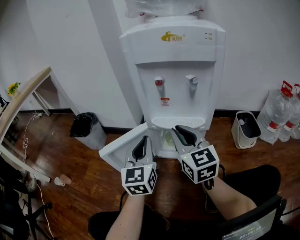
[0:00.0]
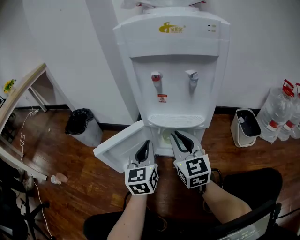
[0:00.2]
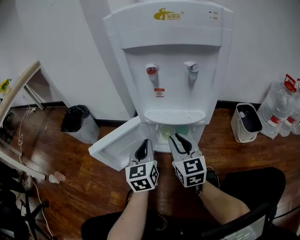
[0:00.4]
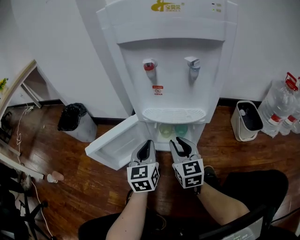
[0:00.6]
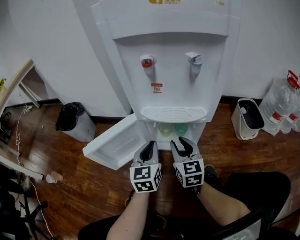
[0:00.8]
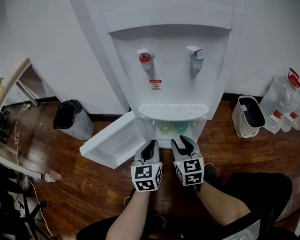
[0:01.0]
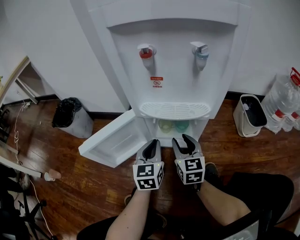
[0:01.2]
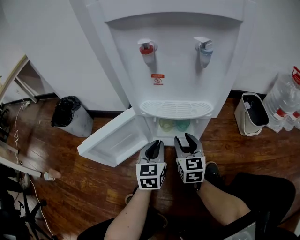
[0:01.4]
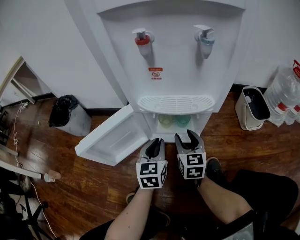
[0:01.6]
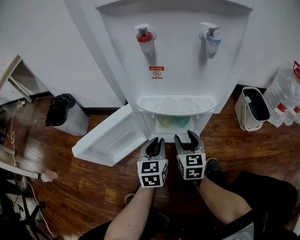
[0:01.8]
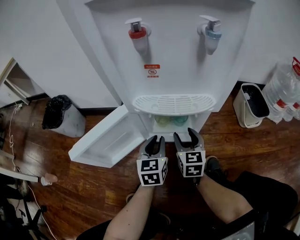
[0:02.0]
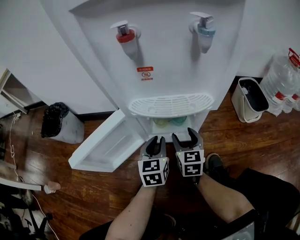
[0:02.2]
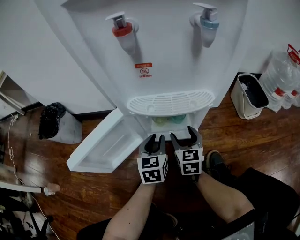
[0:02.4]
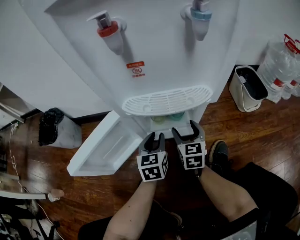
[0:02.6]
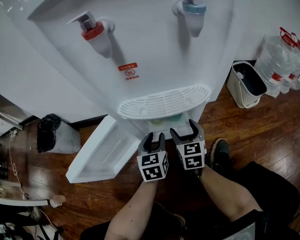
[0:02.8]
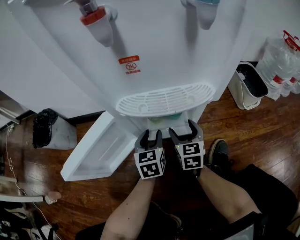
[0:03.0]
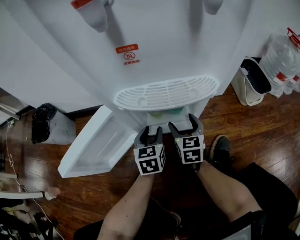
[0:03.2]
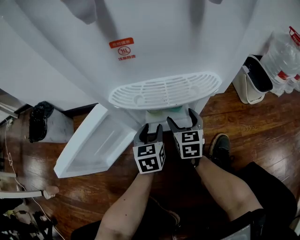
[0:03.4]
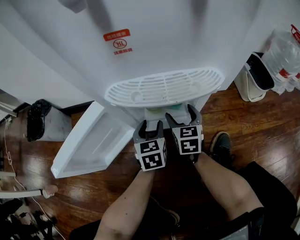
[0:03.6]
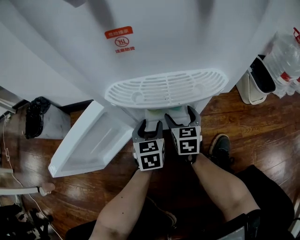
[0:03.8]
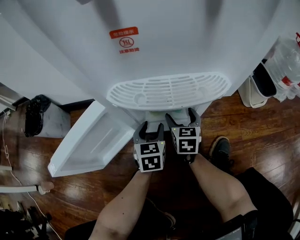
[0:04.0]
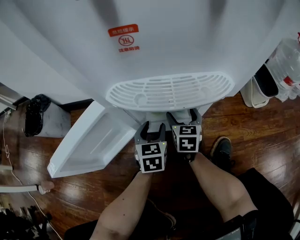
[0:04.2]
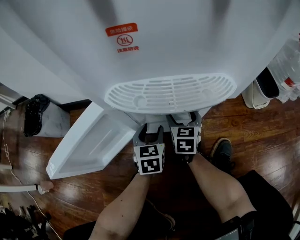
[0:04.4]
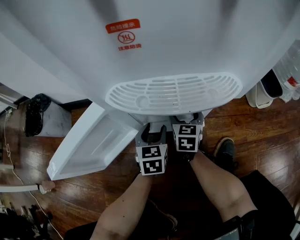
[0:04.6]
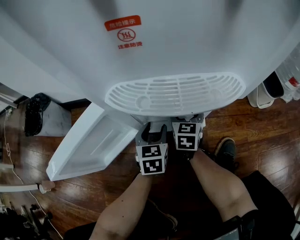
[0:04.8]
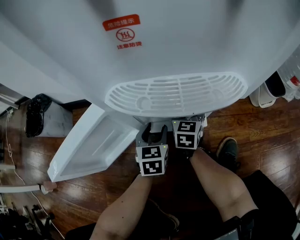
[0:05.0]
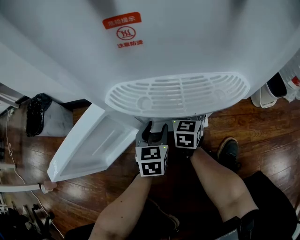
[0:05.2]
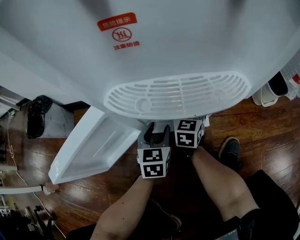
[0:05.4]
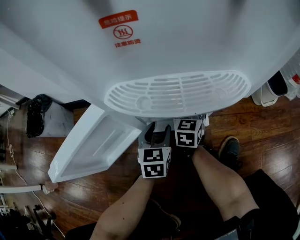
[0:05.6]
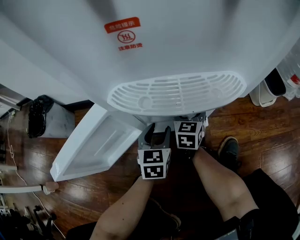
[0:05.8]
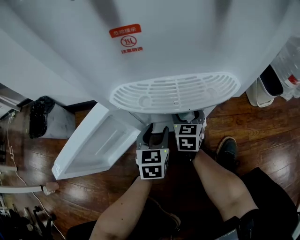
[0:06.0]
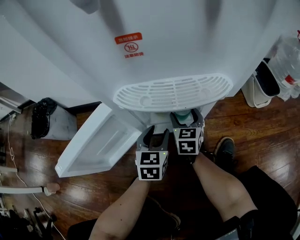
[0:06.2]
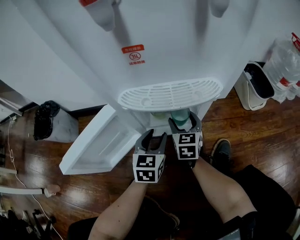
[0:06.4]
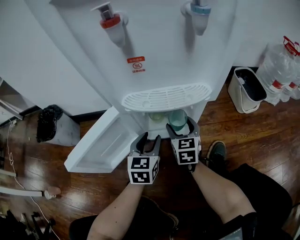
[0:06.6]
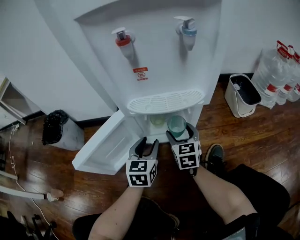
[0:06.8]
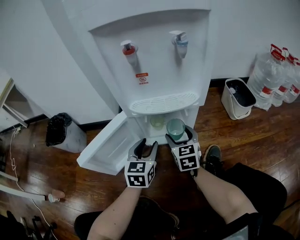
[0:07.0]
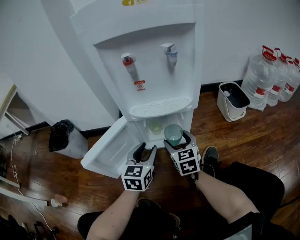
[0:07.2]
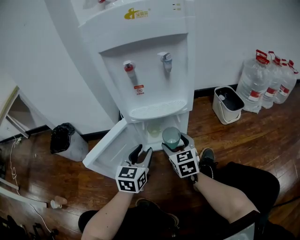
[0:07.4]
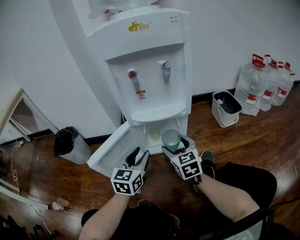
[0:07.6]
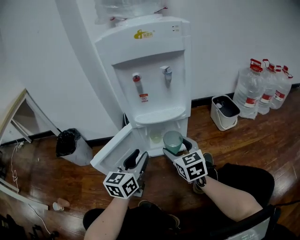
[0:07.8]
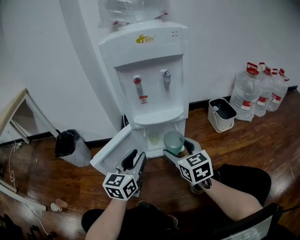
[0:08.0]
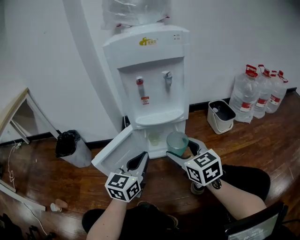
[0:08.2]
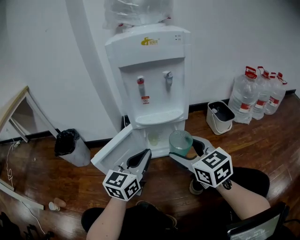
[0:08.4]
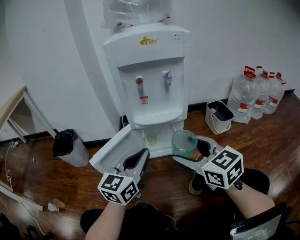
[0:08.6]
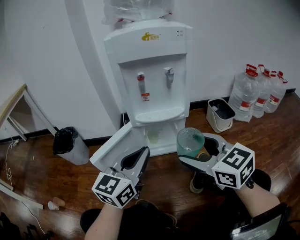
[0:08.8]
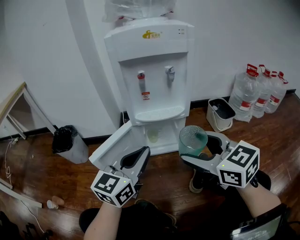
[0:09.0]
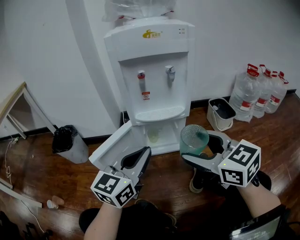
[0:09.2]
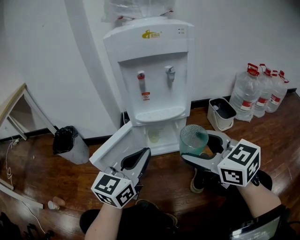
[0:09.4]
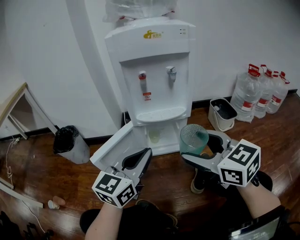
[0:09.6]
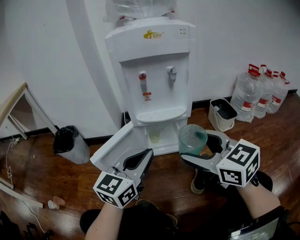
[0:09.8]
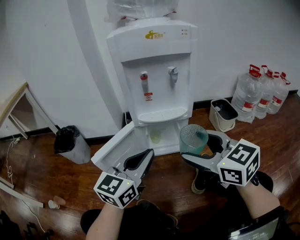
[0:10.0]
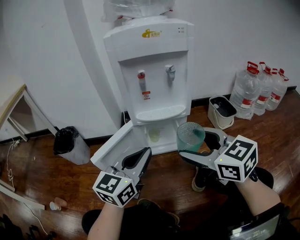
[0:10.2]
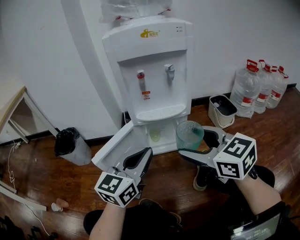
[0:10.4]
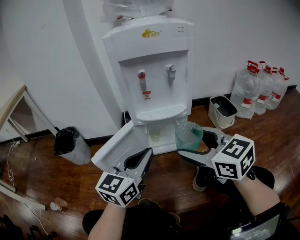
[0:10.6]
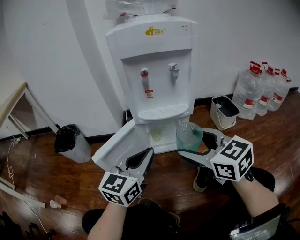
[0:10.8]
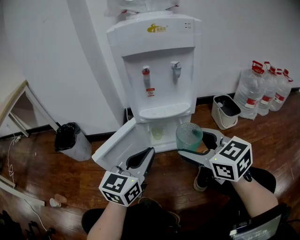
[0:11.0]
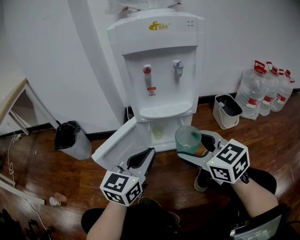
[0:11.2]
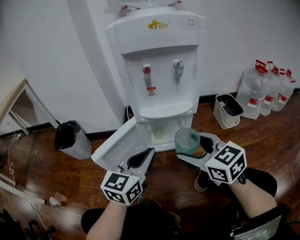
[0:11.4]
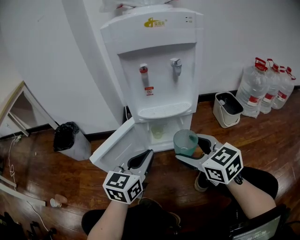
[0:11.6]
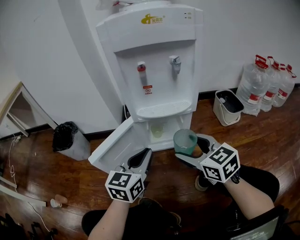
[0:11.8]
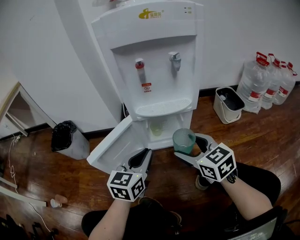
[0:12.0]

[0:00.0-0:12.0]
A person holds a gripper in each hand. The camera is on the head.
0:00.0 to 0:01.6: The grippers both shift downward by approximately 25 cm. The left gripper changes its angle by roughly 20 degrees, while the right gripper swivels roughly 20 degrees, and opens up.
0:01.6 to 0:03.0: The right gripper shifts about 10 cm downward, and opens up. Meanwhile the left gripper is displaced downward and forward by approximately 10 cm, and opens.
0:03.0 to 0:04.4: The right gripper goes about 10 cm forward and downward; the left gripper goes about 5 cm downward.
0:04.4 to 0:06.0: The grippers stay close to where they were, moving slightly.
0:06.0 to 0:07.6: Both grippers move upward and backward, some 30 cm.
0:07.6 to 0:09.0: Both grippers move upward and backward, approximately 20 cm. The right gripper changes its angle by roughly 20 degrees; the left gripper closes, then opens again.
0:09.0 to 0:10.4: There are only small adjustments of the grippers.
0:10.4 to 0:12.0: The two grippers go roughly 15 cm downward and forward.

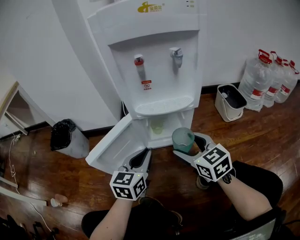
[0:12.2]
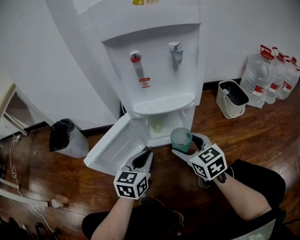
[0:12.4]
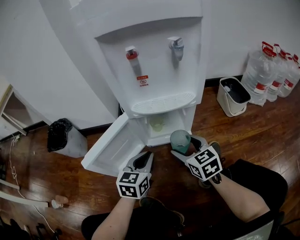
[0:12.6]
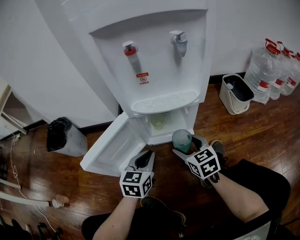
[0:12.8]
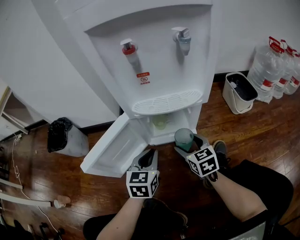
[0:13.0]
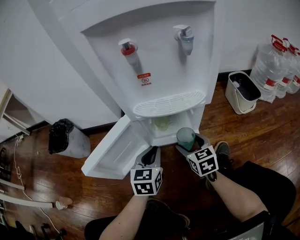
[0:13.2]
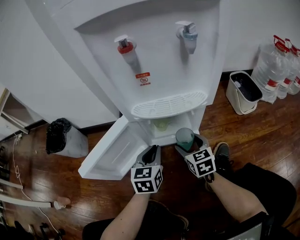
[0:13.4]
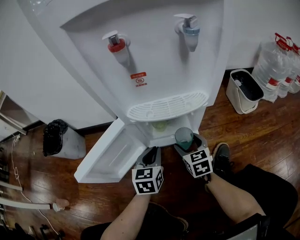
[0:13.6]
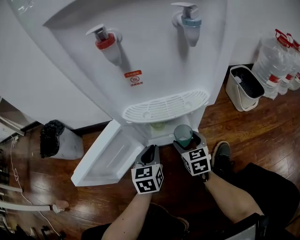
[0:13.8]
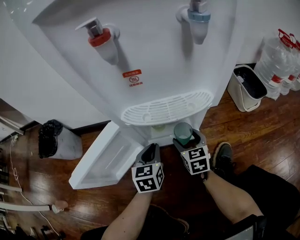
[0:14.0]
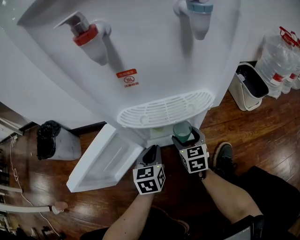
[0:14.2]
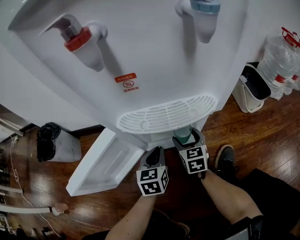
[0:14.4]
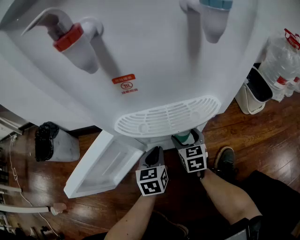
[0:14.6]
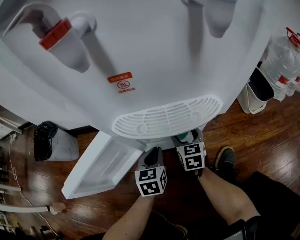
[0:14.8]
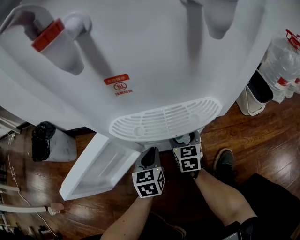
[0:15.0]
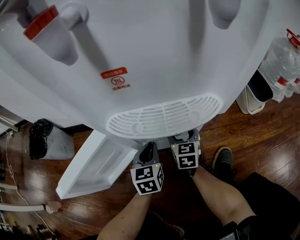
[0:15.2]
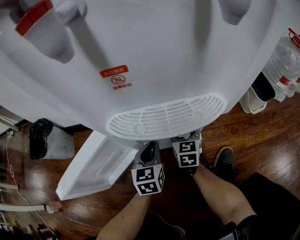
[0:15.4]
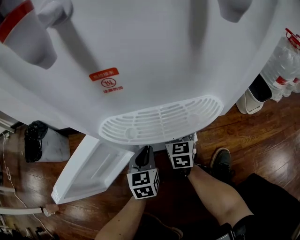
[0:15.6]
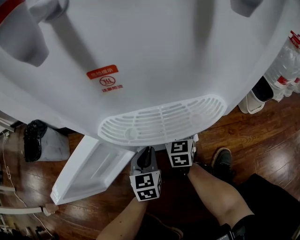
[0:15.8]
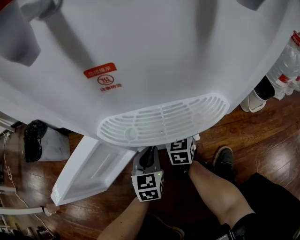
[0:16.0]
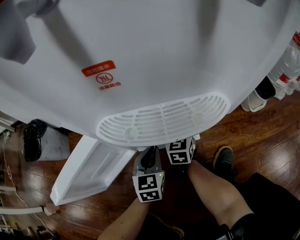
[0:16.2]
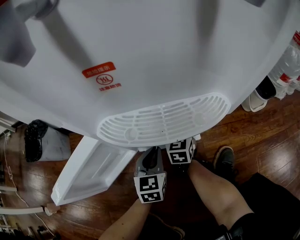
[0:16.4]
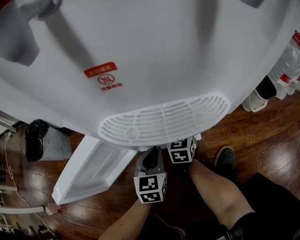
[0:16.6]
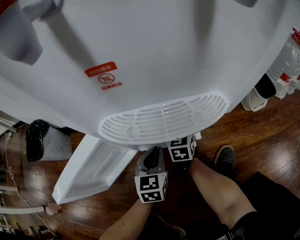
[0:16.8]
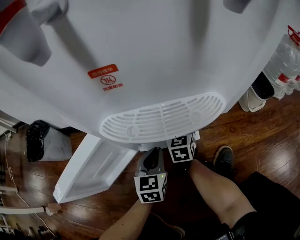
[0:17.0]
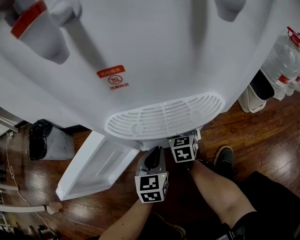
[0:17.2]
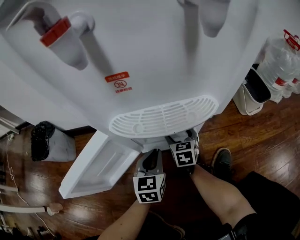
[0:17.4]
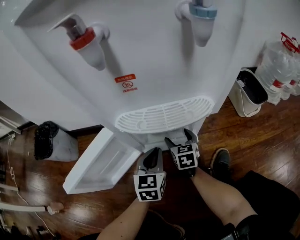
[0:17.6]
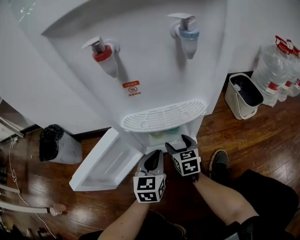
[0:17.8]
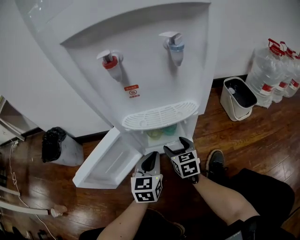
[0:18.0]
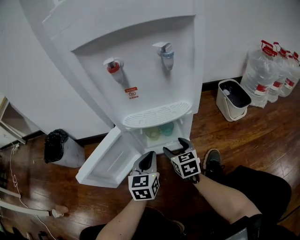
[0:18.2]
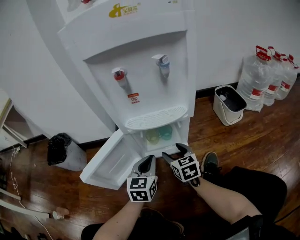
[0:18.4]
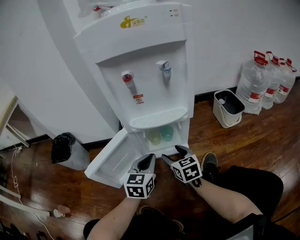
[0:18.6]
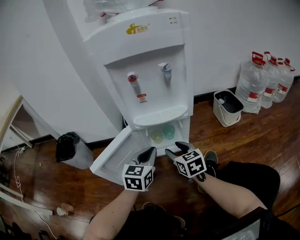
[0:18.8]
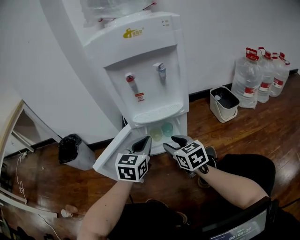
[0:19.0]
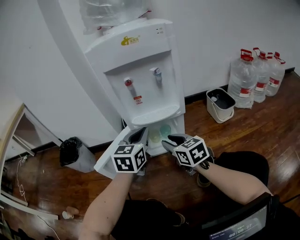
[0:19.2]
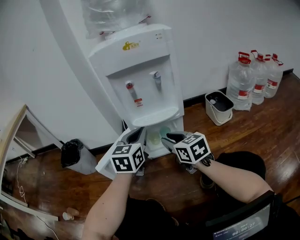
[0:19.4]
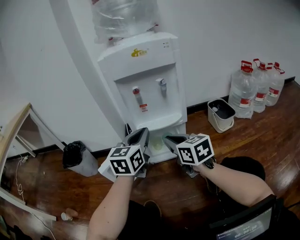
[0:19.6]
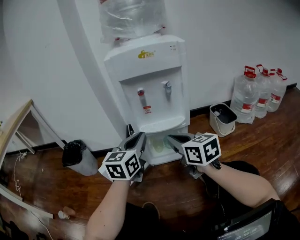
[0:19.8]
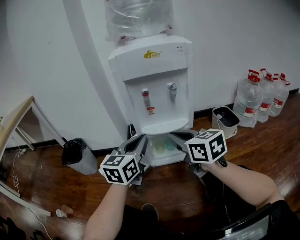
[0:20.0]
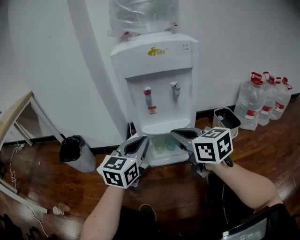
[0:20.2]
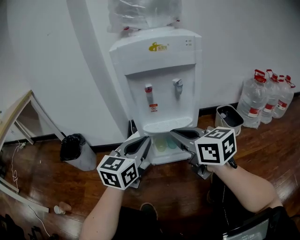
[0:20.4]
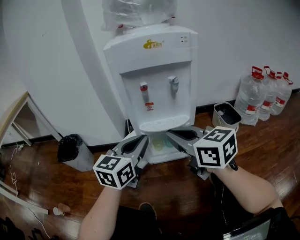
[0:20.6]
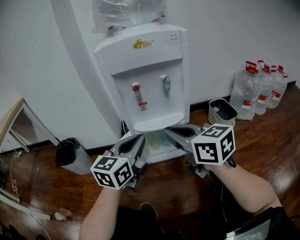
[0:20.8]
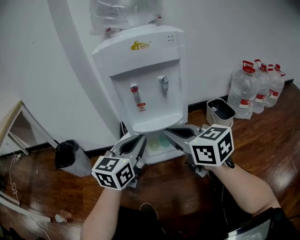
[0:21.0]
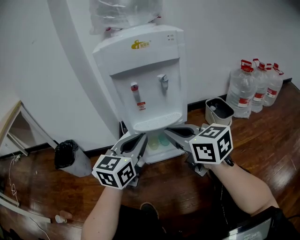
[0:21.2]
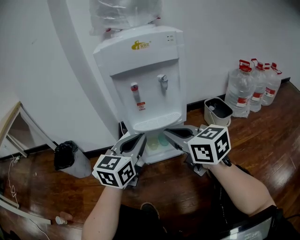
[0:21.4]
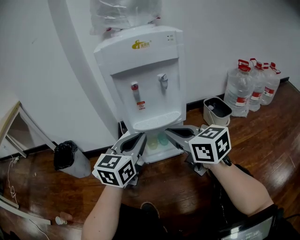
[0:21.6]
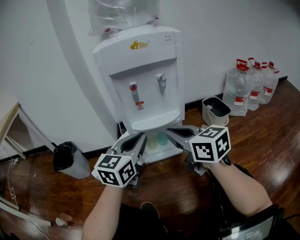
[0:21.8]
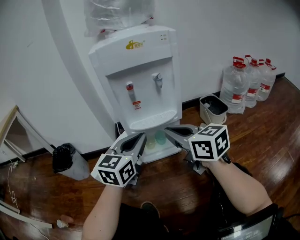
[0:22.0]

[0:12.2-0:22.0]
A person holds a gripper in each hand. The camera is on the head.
0:12.2 to 0:13.6: The grippers both shift downward and forward by about 20 cm.
0:13.6 to 0:15.0: The left gripper travels downward and forward by some 10 cm; the right gripper shifts some 10 cm forward and downward.
0:15.0 to 0:16.4: The grippers stay close to where they were, moving slightly.
0:16.4 to 0:17.8: The right gripper moves backward, about 10 cm. The left gripper moves upward, about 10 cm.
0:17.8 to 0:19.2: The left gripper moves upward, about 25 cm, while the right gripper moves upward and backward, about 30 cm, and closes up.
0:19.2 to 0:20.6: The left gripper travels upward by roughly 5 cm, while the right gripper heads upward, covering some 15 cm.
0:20.6 to 0:22.0: The grippers move only a little.

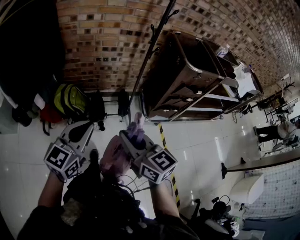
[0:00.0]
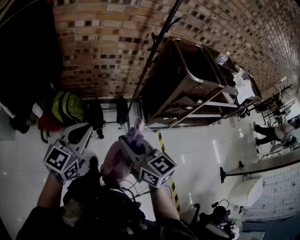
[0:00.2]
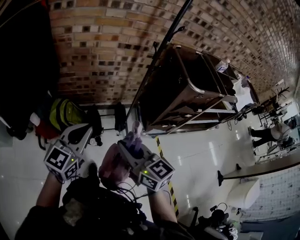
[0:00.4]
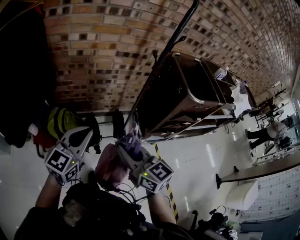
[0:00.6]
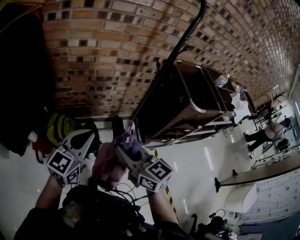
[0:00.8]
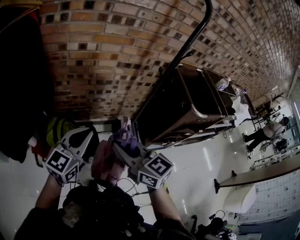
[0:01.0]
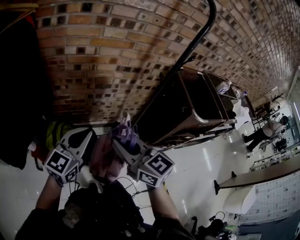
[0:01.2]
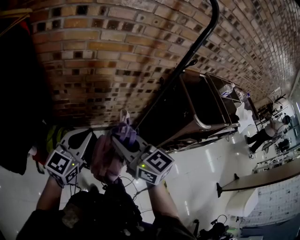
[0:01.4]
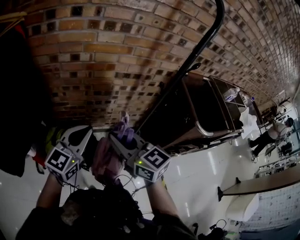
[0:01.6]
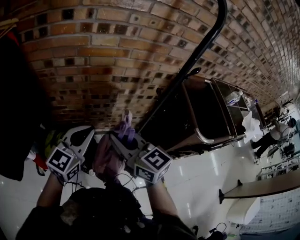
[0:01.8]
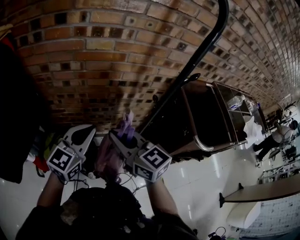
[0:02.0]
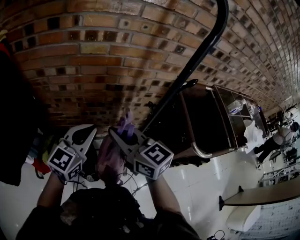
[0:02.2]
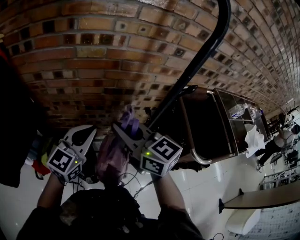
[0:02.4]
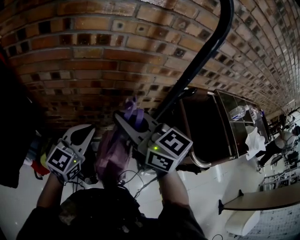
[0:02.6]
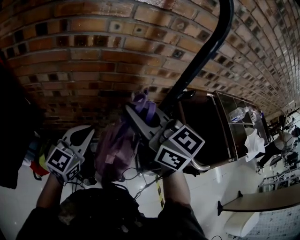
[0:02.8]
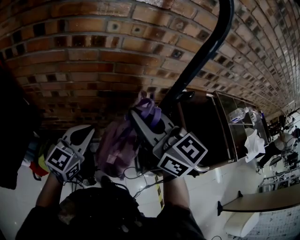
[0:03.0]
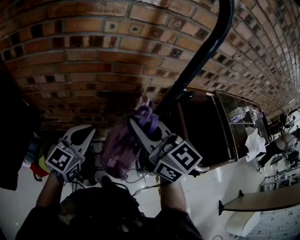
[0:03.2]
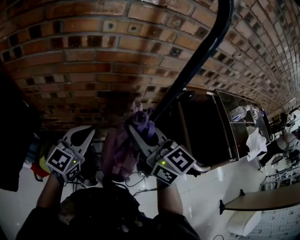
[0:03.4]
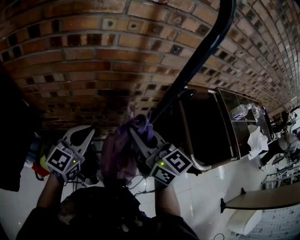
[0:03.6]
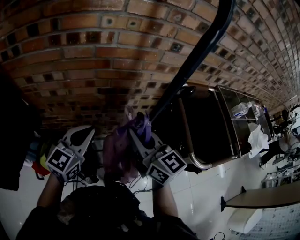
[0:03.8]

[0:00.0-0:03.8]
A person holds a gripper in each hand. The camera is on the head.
0:00.0 to 0:01.2: The grippers both shift forward by some 30 cm.
0:01.2 to 0:02.6: The two grippers go roughly 30 cm forward and to the right.
0:02.6 to 0:03.8: The right gripper is displaced to the right and downward by roughly 10 cm.
